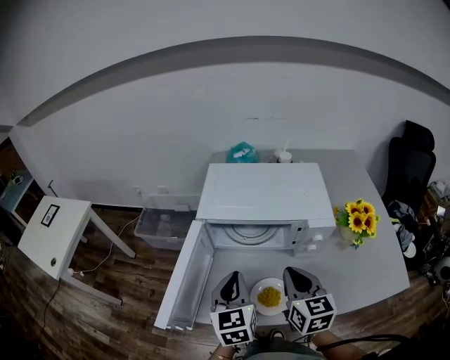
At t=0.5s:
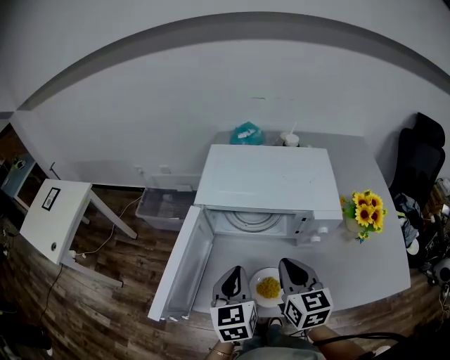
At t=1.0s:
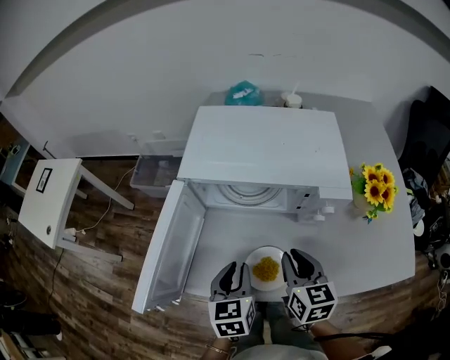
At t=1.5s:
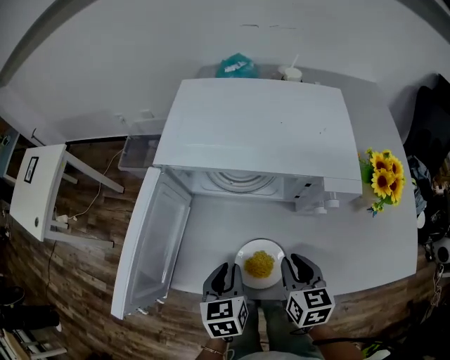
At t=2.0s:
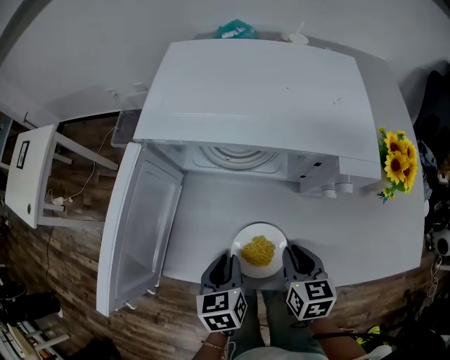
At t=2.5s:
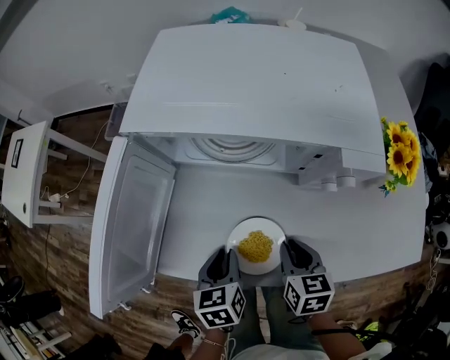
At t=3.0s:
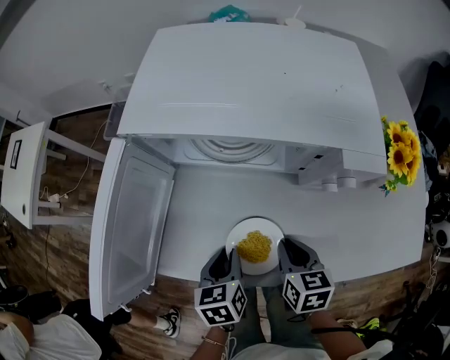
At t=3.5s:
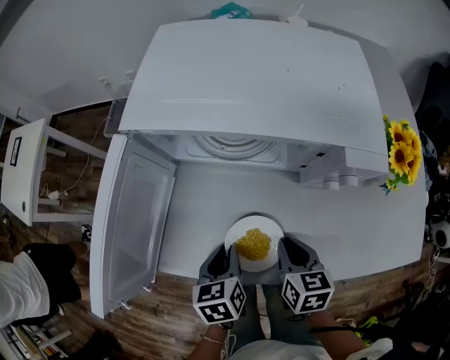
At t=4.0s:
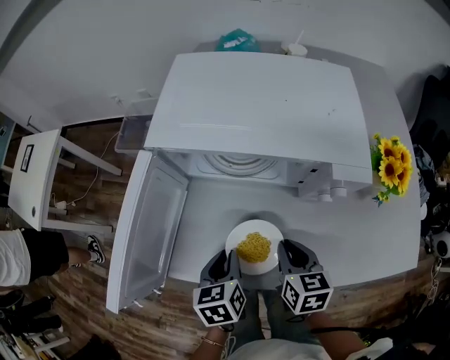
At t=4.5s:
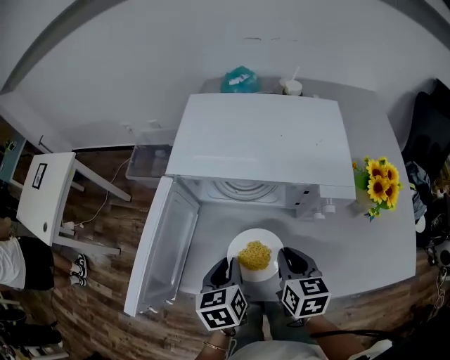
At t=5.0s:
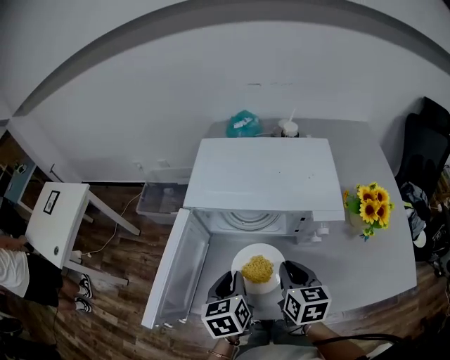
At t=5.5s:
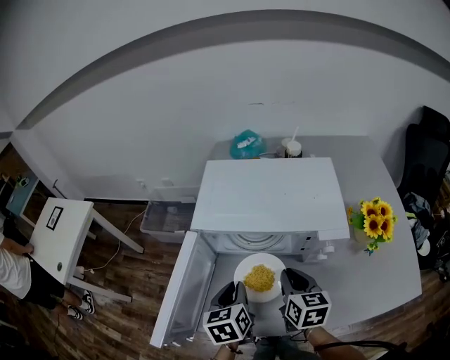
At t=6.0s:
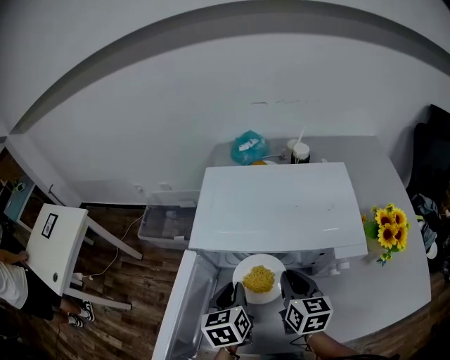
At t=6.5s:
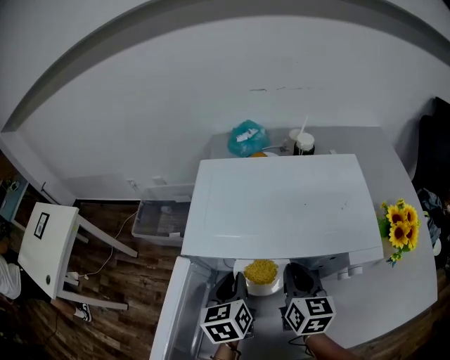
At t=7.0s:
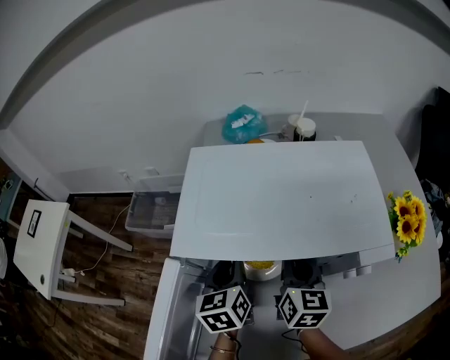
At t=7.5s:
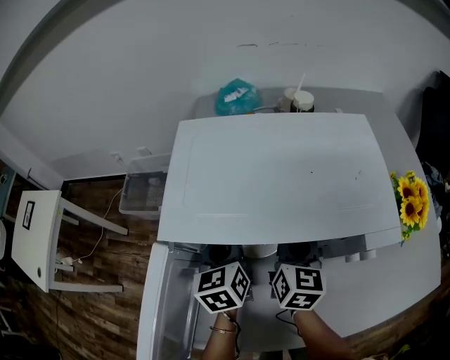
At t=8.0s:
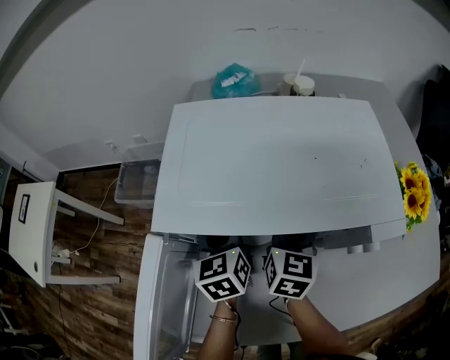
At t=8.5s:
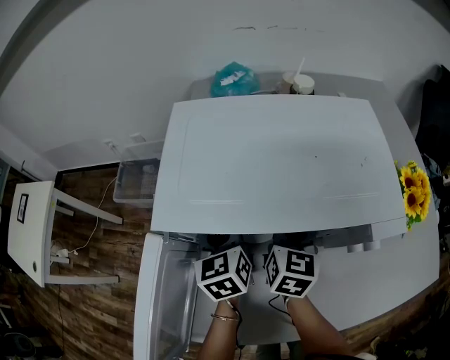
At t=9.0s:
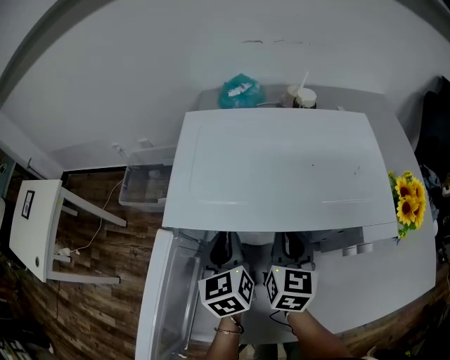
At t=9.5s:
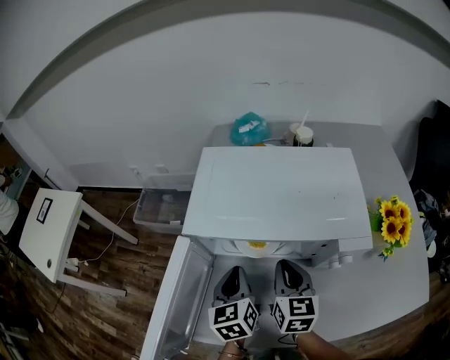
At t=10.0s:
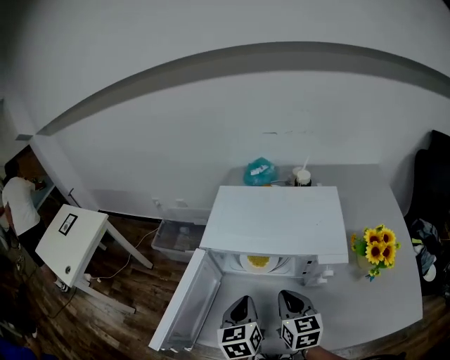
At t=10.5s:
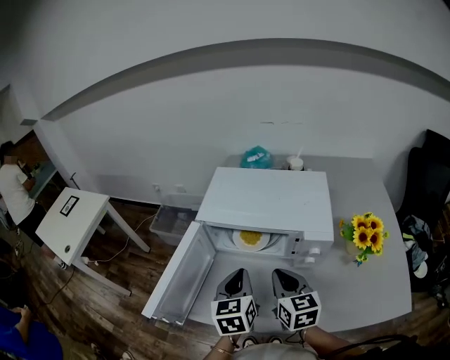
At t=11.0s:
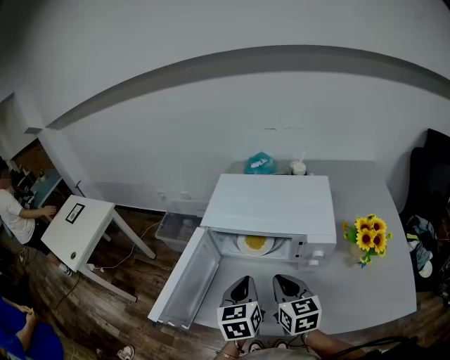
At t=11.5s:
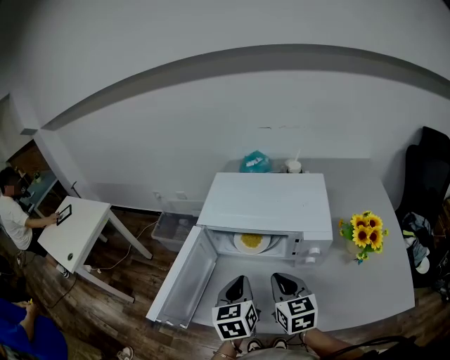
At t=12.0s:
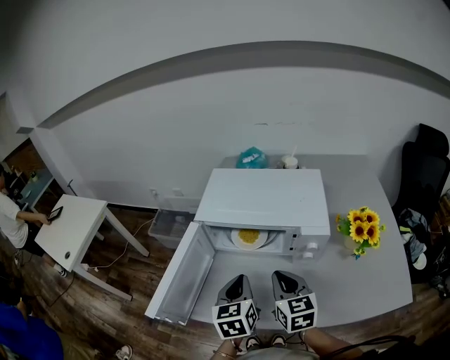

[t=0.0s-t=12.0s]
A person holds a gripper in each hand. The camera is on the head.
t=0.0s to t=2.0s: The grippers both shift downward by some 20 cm. The left gripper rotates some 30 degrees, while the right gripper changes its angle by roughly 30 degrees.
t=2.0s to t=4.0s: The grippers move only a little.
t=4.0s to t=6.0s: The grippers both shift forward and upward by roughly 15 cm.
t=6.0s to t=8.0s: Both grippers move forward, some 10 cm. The right gripper rotates about 20 degrees.
t=8.0s to t=10.0s: The two grippers go roughly 20 cm backward and upward. The right gripper rotates about 30 degrees.
t=10.0s to t=12.0s: The right gripper moves approximately 5 cm, while the left gripper changes place by some 5 cm.

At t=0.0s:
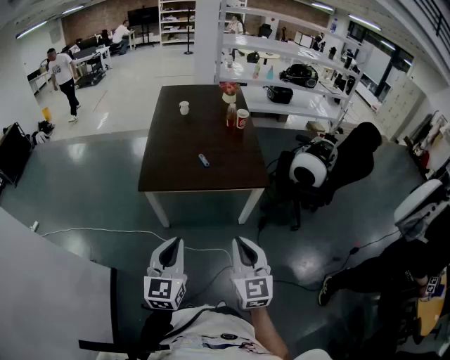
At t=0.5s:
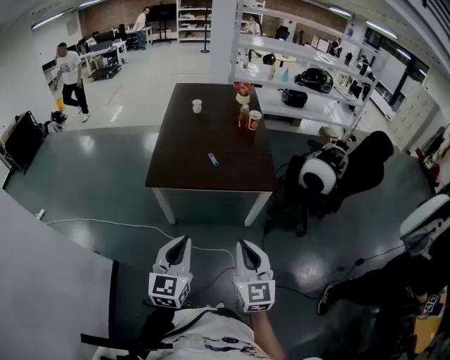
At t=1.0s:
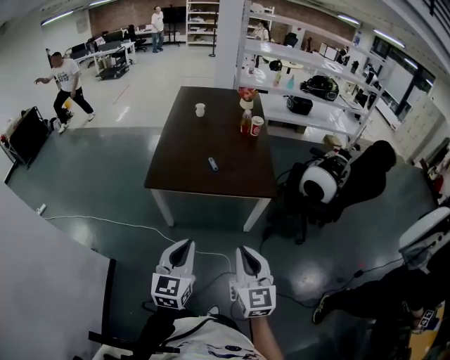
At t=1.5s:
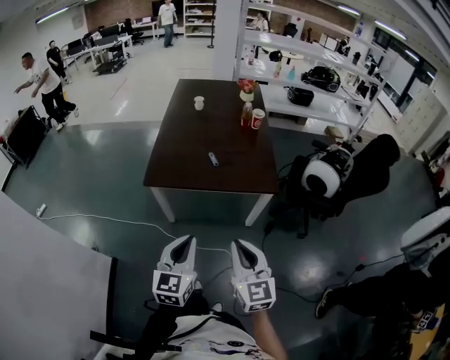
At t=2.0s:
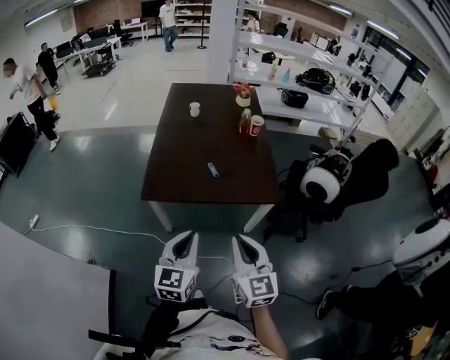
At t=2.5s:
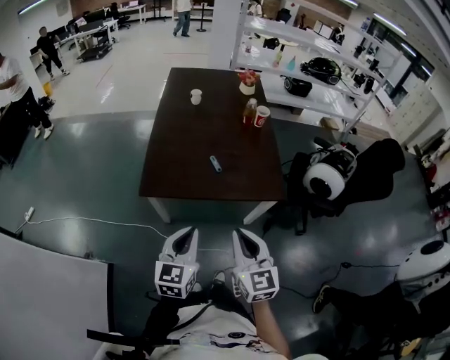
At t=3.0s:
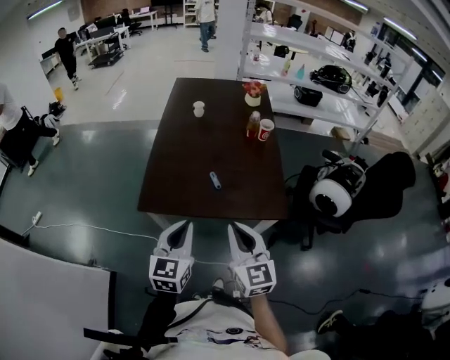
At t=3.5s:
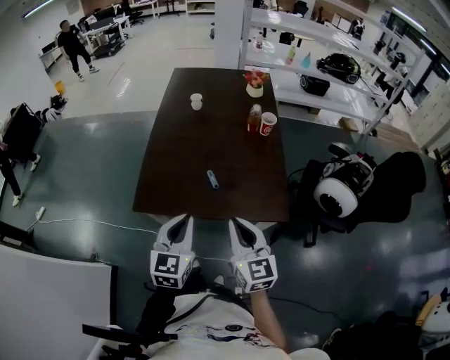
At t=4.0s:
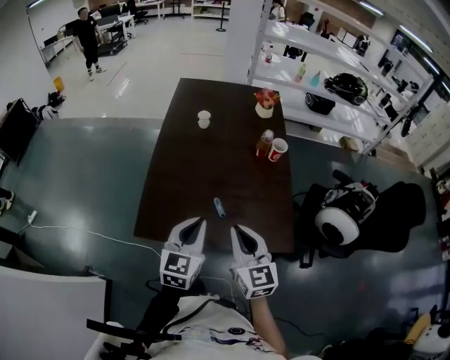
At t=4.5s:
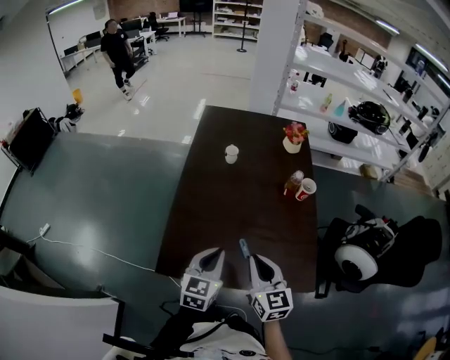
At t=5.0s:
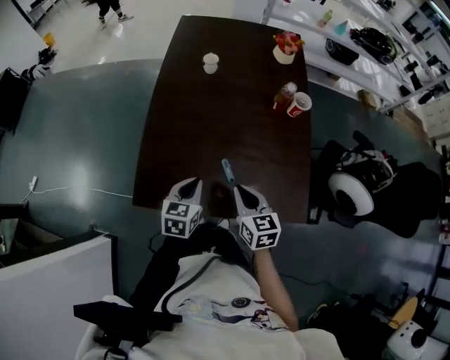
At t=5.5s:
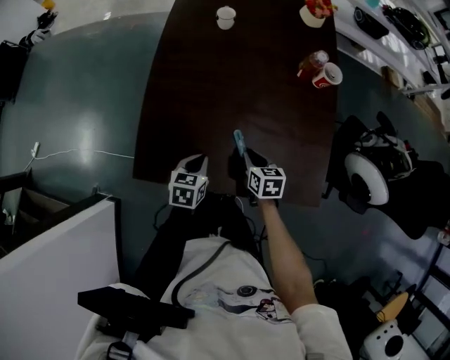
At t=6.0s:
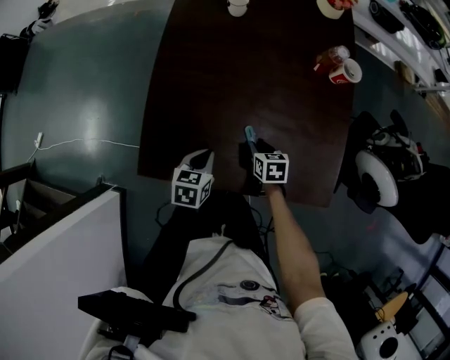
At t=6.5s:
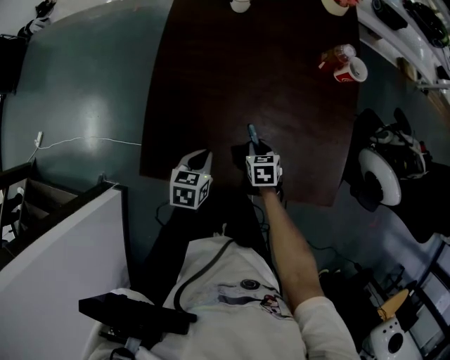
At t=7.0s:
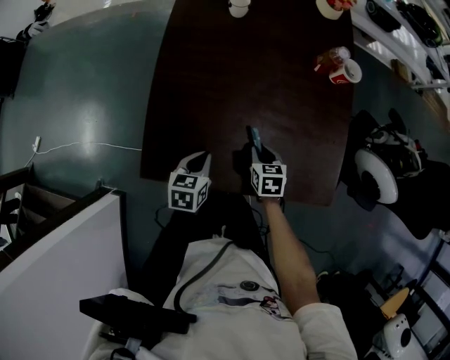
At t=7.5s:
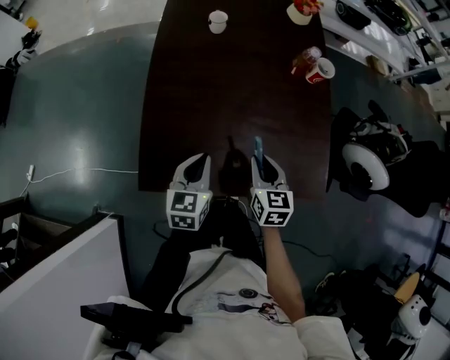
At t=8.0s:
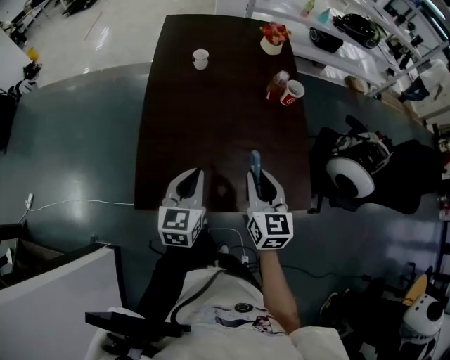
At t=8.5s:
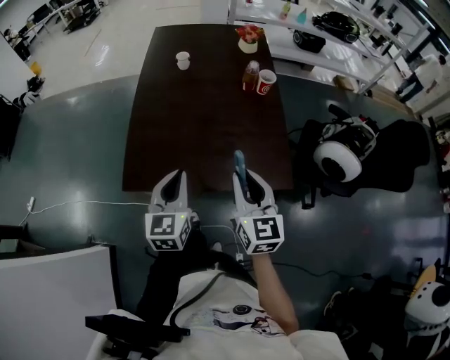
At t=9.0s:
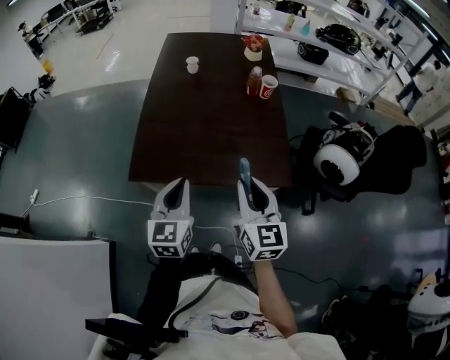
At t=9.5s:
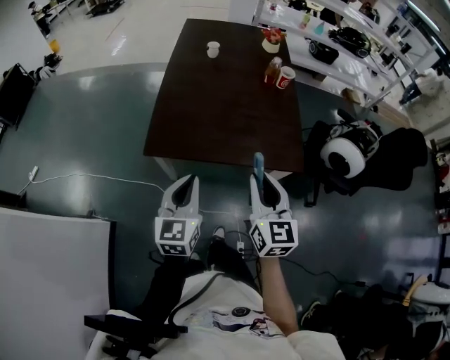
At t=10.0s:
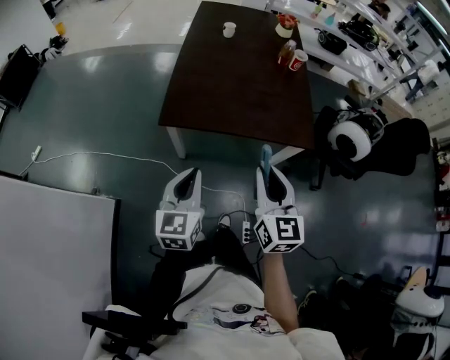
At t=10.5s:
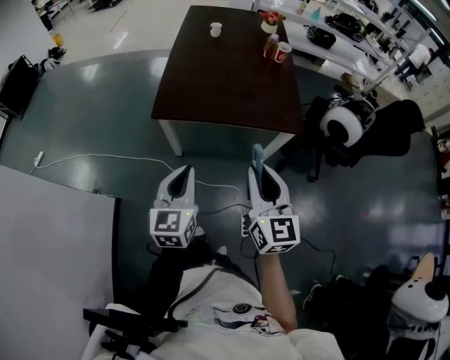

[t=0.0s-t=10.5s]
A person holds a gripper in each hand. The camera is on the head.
t=0.0s to t=2.0s: Both grippers move forward, approximately 10 cm.
t=2.0s to t=4.0s: The two grippers go about 30 cm forward.
t=4.0s to t=6.5s: Both grippers move downward, approximately 30 cm. The left gripper tilts its fingers approximately 30 degrees downward, while the right gripper tips its fingers downward by roughly 50 degrees.
t=6.5s to t=8.5s: The right gripper is displaced upward and backward by approximately 35 cm, and points its fingers approximately 50 degrees further upward. The left gripper shifts about 25 cm upward, and angles its fingers upward, by roughly 30 degrees.
t=8.5s to t=10.5s: Both grippers move backward, roughly 30 cm.

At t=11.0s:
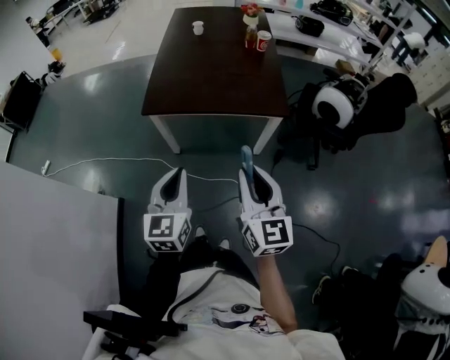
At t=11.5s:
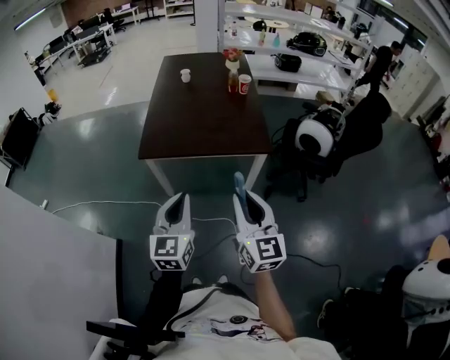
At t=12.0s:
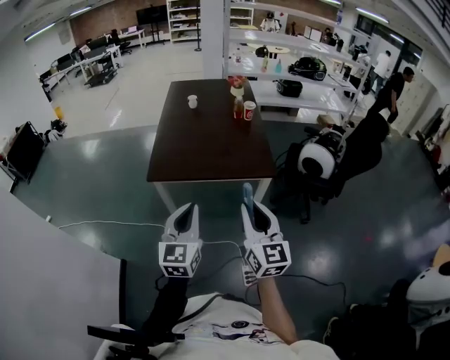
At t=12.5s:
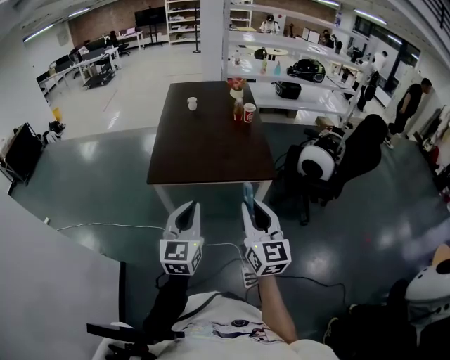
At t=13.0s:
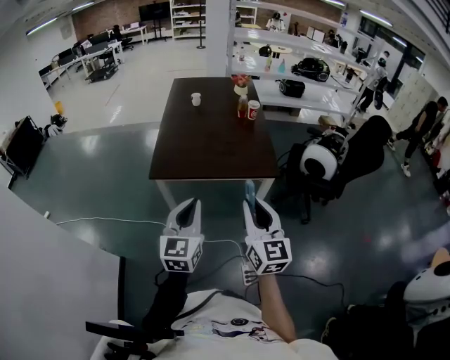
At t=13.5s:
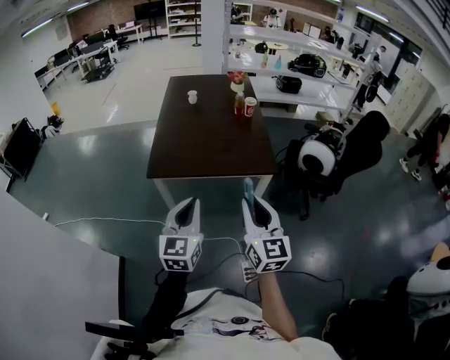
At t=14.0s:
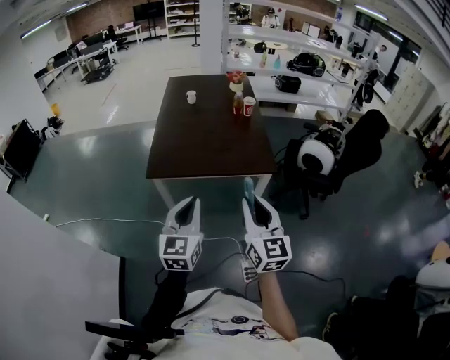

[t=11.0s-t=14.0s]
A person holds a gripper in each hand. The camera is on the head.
t=11.0s to t=12.5s: The right gripper changes place by approximately 5 cm; the left gripper shifts some 5 cm upward.
t=12.5s to t=14.0s: Both grippers stay about where they are.

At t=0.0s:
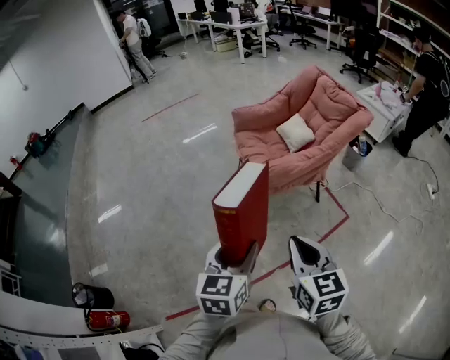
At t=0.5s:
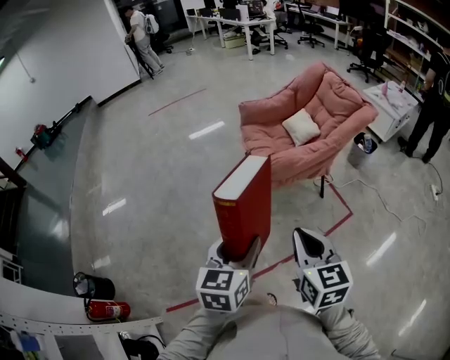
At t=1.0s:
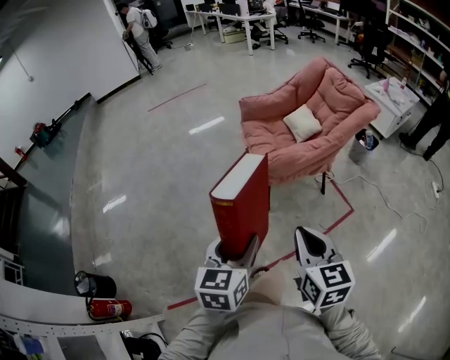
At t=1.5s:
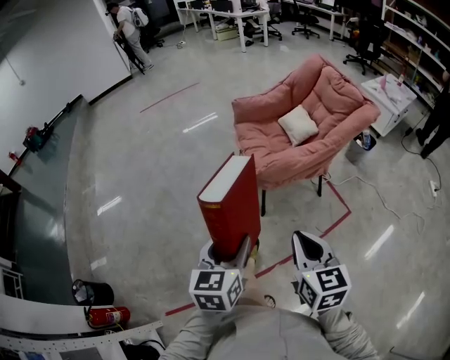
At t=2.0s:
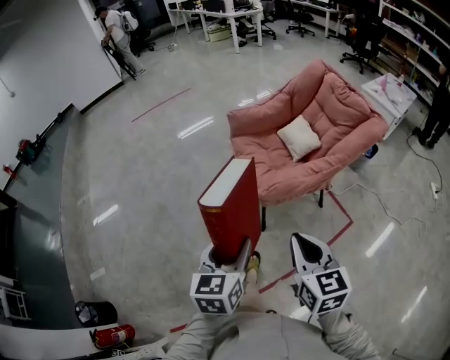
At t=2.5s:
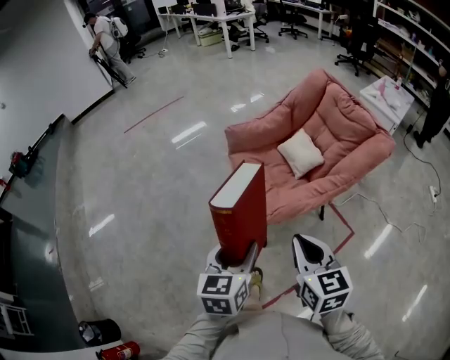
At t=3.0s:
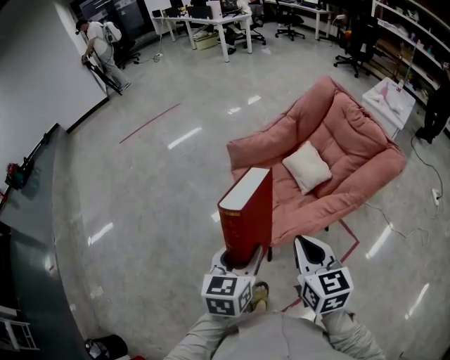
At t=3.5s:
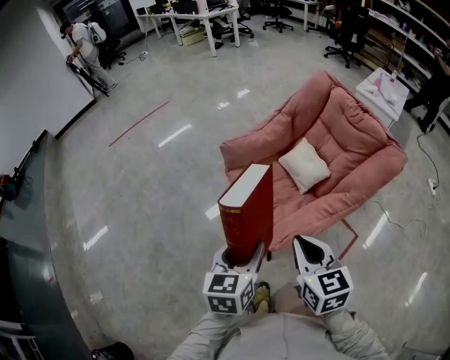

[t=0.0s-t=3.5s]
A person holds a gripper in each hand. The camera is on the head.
t=0.0s to t=2.0s: Both grippers move forward, about 15 cm.
t=2.0s to t=3.5s: The grippers both shift forward by roughly 25 cm.
